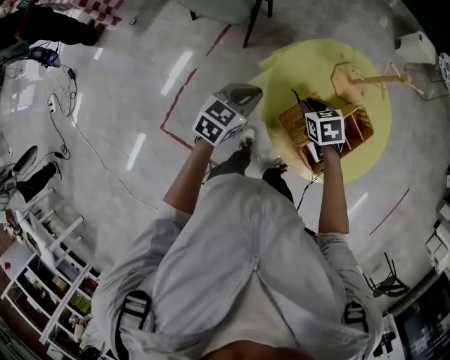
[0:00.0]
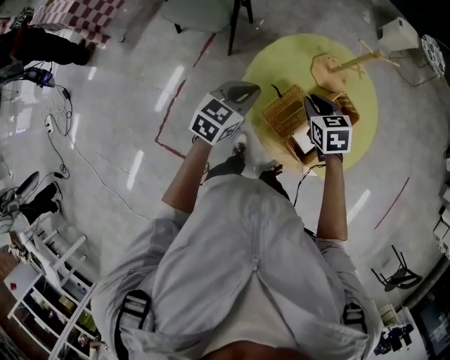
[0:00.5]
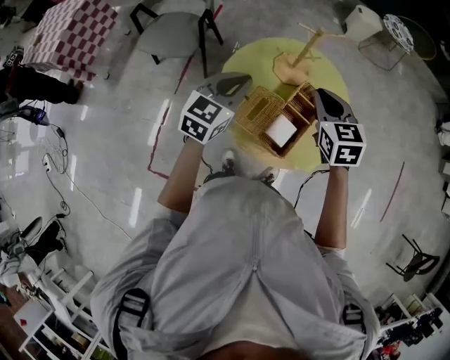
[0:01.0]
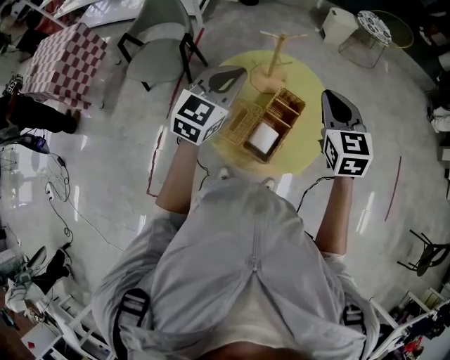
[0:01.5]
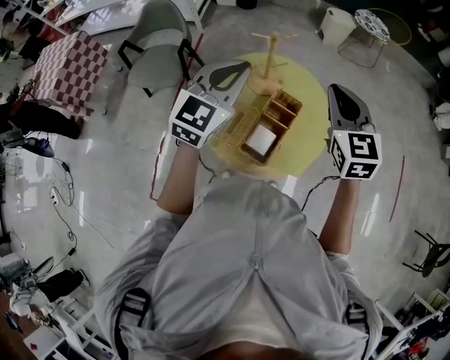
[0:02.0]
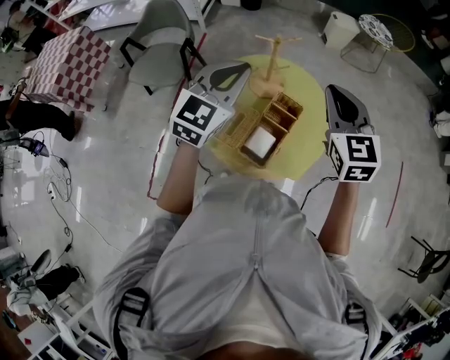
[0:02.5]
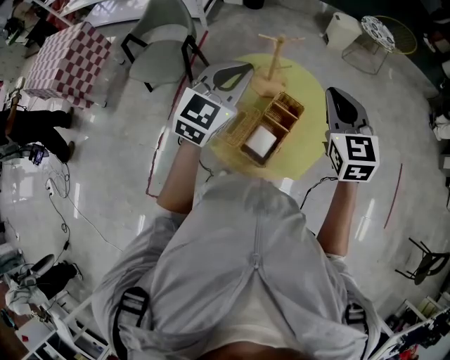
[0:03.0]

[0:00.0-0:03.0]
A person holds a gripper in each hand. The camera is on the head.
0:00.0 to 0:01.5: Both grippers travel together upward and to the right, about 35 cm. The right gripper angles its fingers upward, by about 40 degrees. Meanwhile the left gripper turns by some 30 degrees.

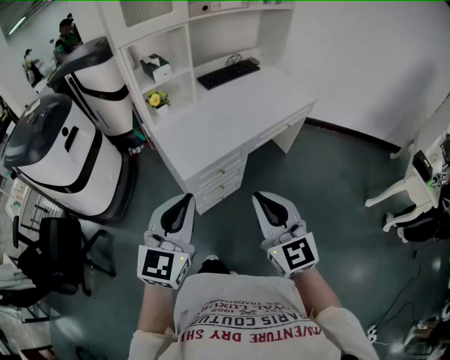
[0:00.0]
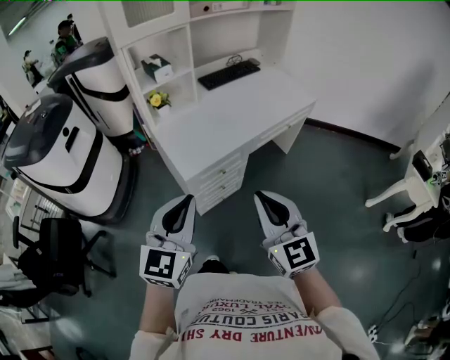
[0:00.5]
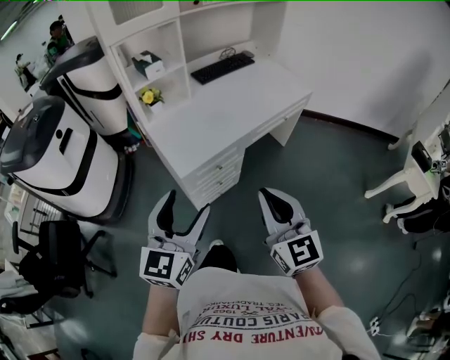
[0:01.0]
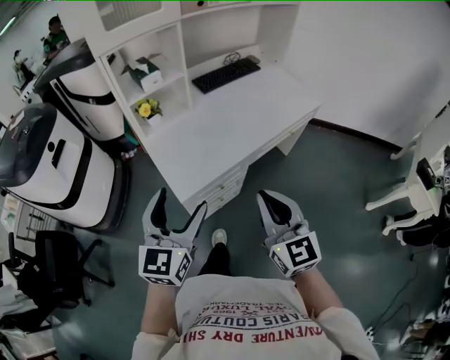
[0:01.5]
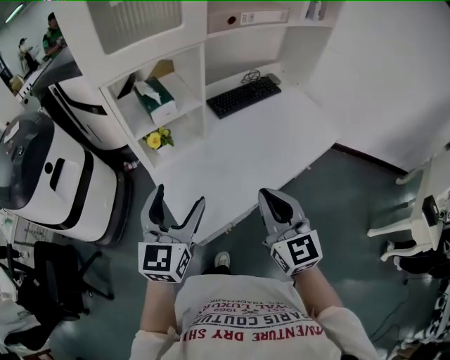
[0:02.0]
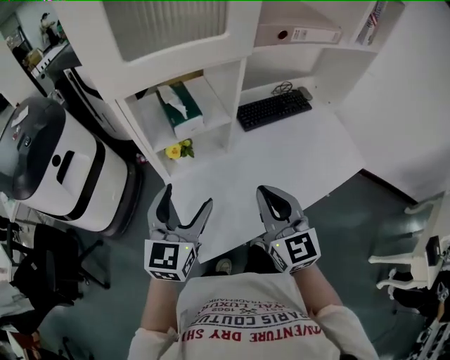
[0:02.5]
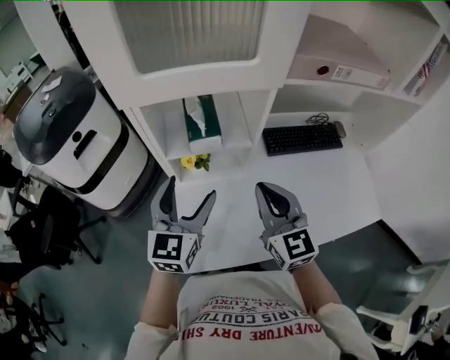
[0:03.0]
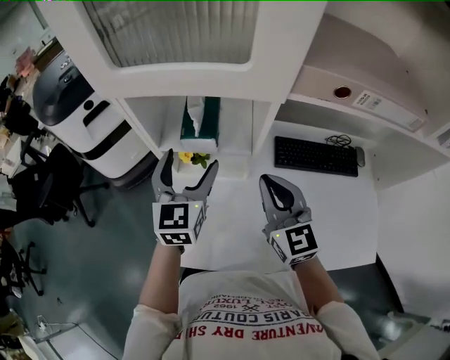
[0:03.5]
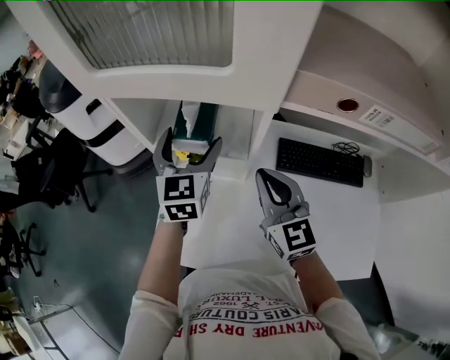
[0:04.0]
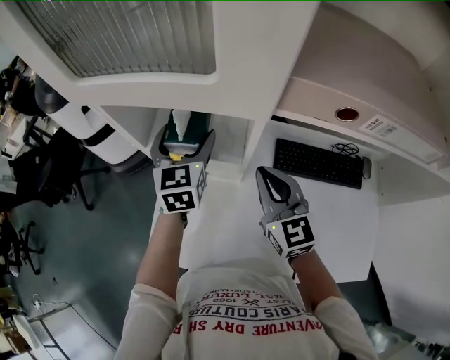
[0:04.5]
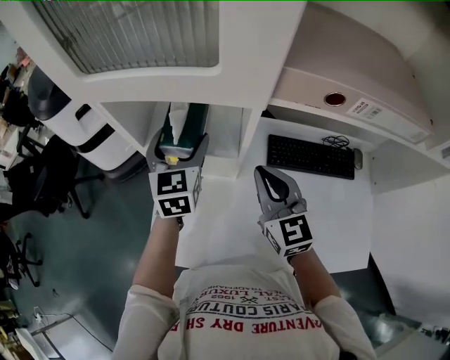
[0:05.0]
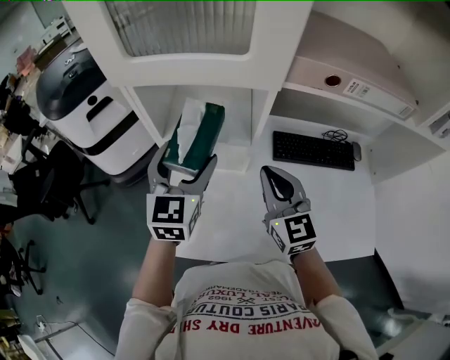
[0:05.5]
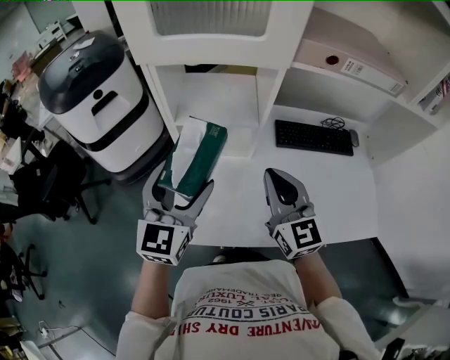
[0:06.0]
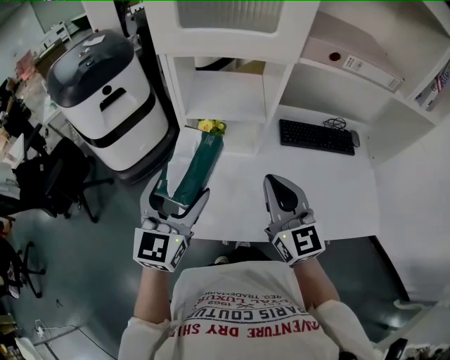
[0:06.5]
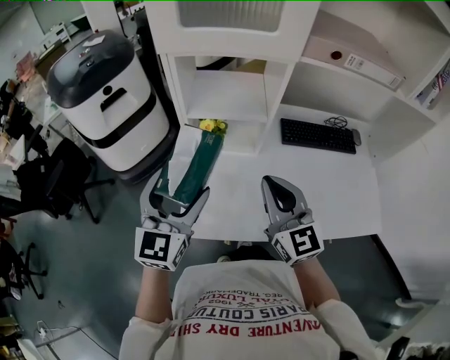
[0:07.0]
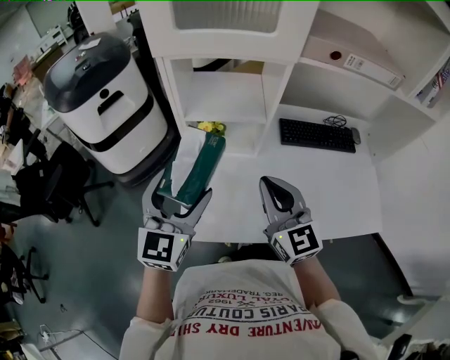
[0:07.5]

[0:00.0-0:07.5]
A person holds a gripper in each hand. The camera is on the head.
0:00.0 to 0:02.0: Both grippers travel together forward, roughly 35 cm. The left gripper opens.
0:02.0 to 0:04.0: The left gripper moves some 30 cm, and rotates roughly 50 degrees. The right gripper moves about 35 cm, and rotates roughly 40 degrees.
0:04.0 to 0:05.5: The left gripper travels backward by about 10 cm, while the right gripper moves backward, some 5 cm.
0:05.5 to 0:07.5: Both grippers move backward and to the left, approximately 15 cm.

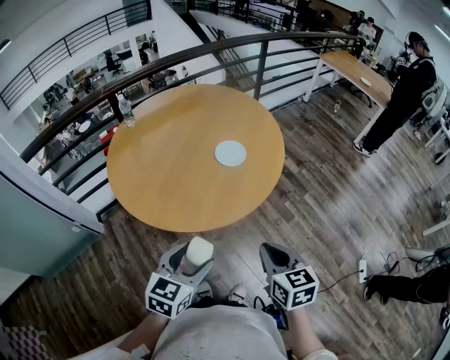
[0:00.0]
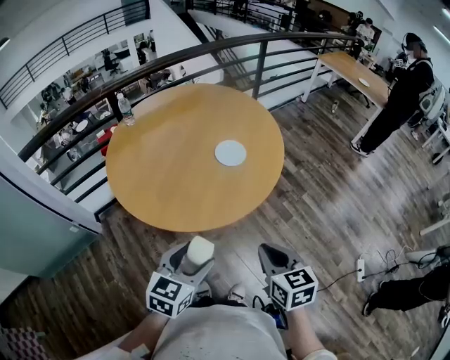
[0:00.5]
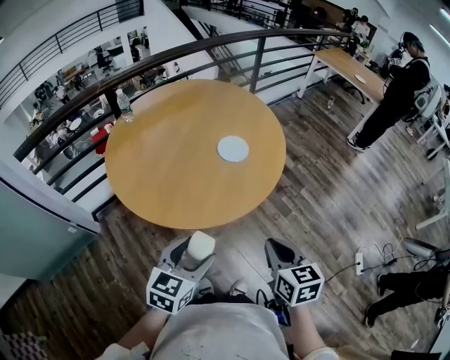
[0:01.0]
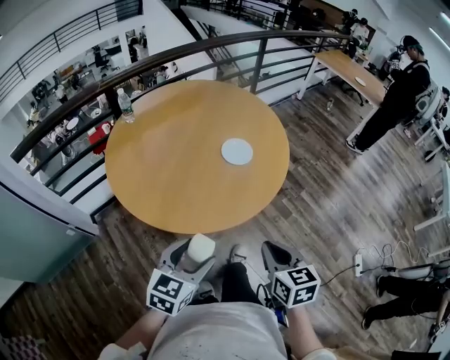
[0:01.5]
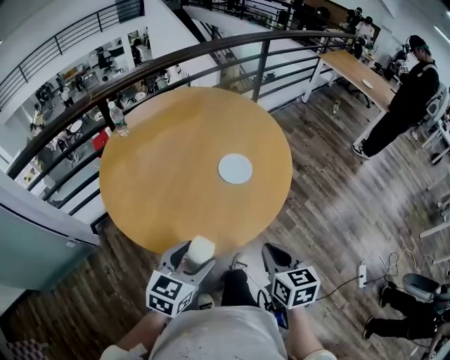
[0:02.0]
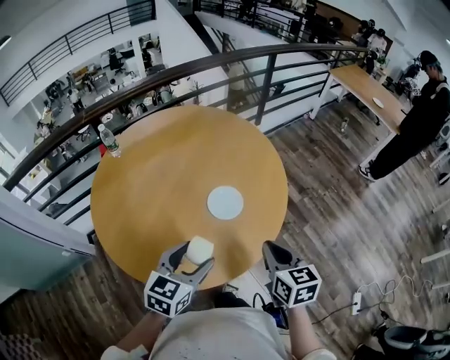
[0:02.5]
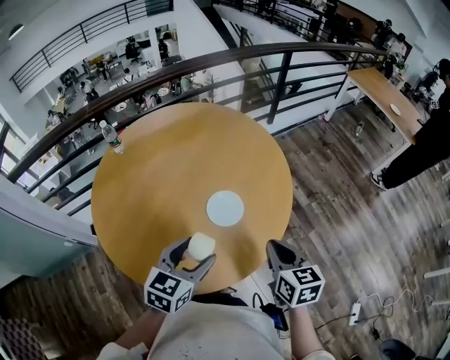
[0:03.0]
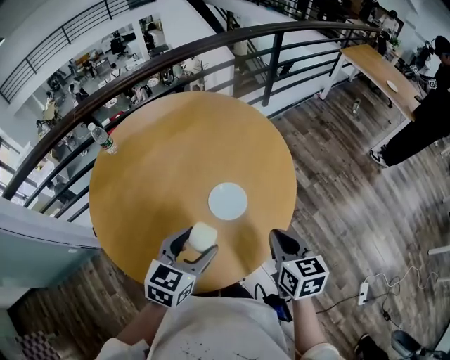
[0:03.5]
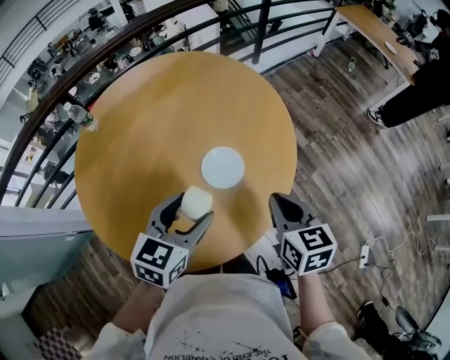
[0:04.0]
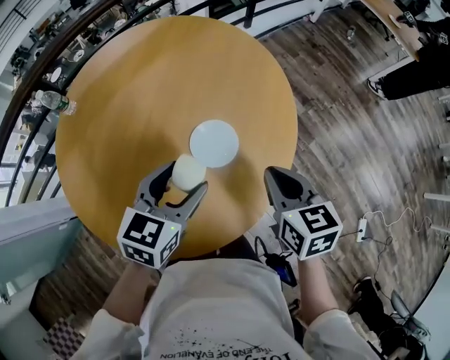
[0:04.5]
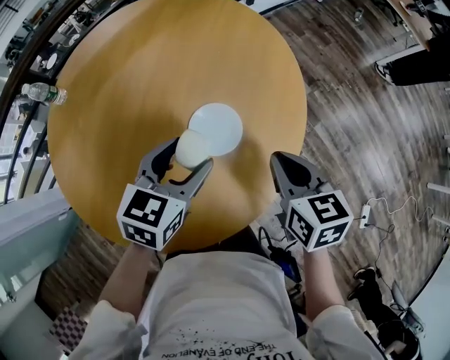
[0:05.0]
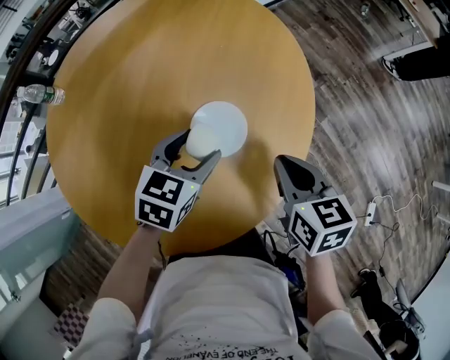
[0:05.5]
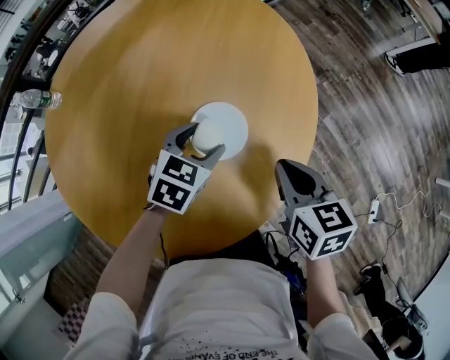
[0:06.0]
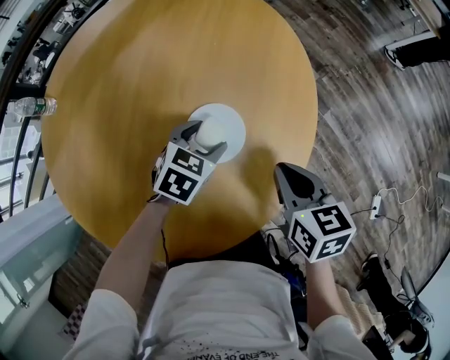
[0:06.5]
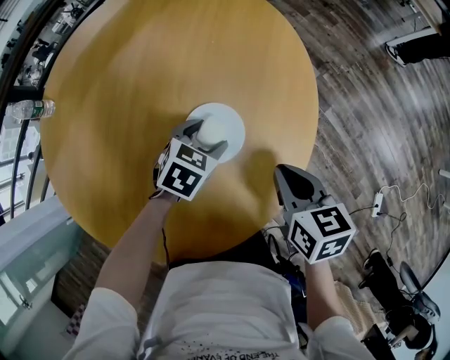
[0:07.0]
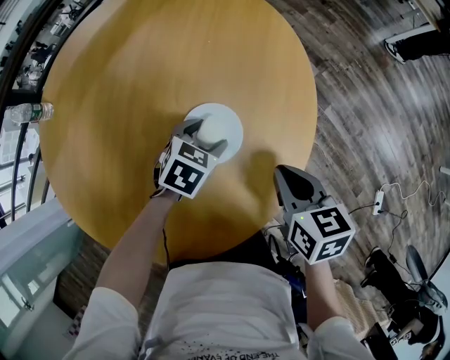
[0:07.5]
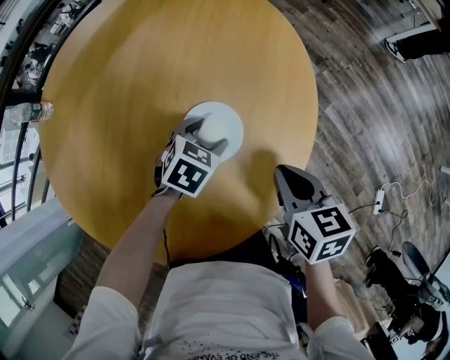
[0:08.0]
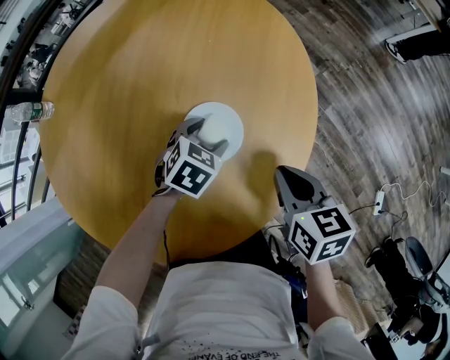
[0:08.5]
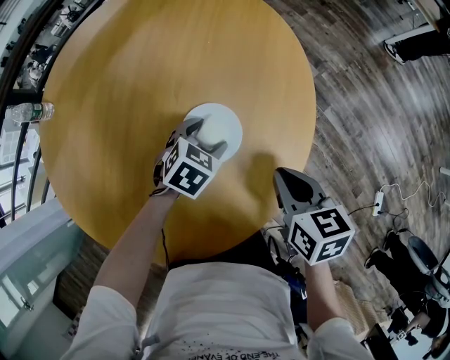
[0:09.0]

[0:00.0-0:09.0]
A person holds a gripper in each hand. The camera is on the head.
0:00.0 to 0:02.0: The grippers both shift forward by about 10 cm.
0:02.0 to 0:04.5: The two grippers go about 30 cm forward.
0:04.5 to 0:07.0: The right gripper heads downward, covering approximately 10 cm, while the left gripper goes roughly 25 cm downward and forward, and changes its angle by approximately 30 degrees.
0:07.0 to 0:09.0: The grippers stay close to where they were, moving slightly.

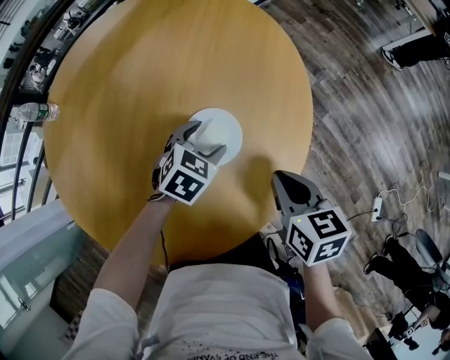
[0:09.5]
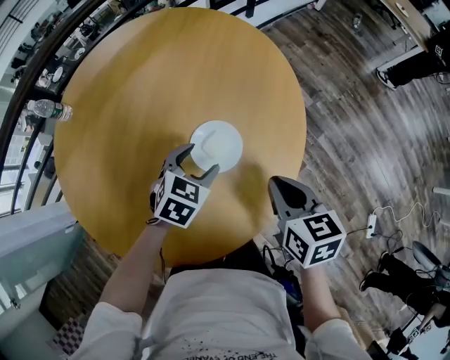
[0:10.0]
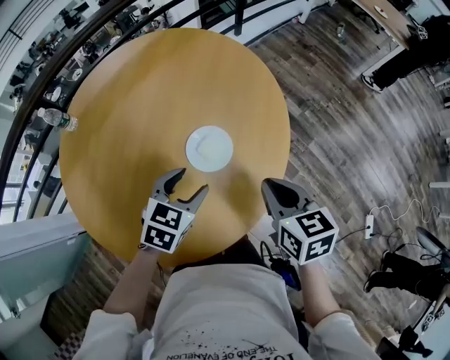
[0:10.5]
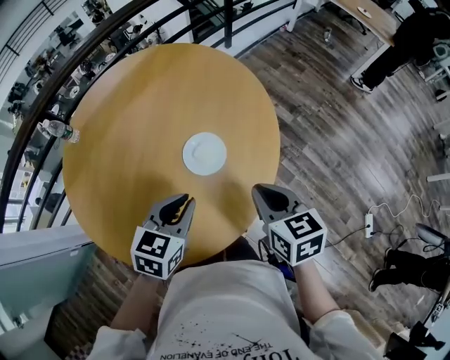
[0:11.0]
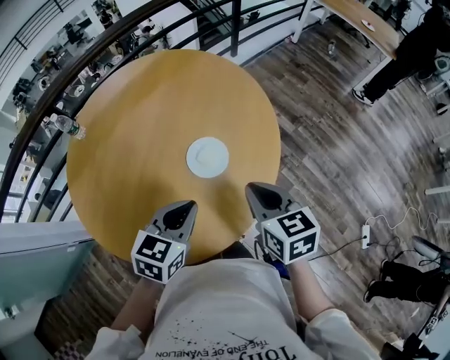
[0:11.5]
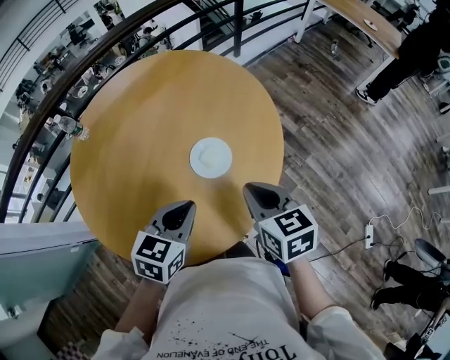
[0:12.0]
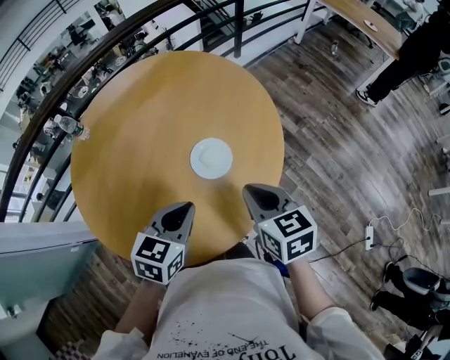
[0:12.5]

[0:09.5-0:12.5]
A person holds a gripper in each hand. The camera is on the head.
0:09.5 to 0:11.0: The left gripper moves upward and backward, approximately 25 cm, changes its angle by some 20 degrees, and closes. Meanwhile the right gripper travels upward and backward by roughly 15 cm.
0:11.0 to 0:12.5: The grippers make only small movements.

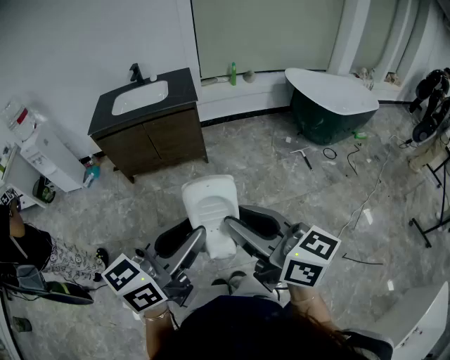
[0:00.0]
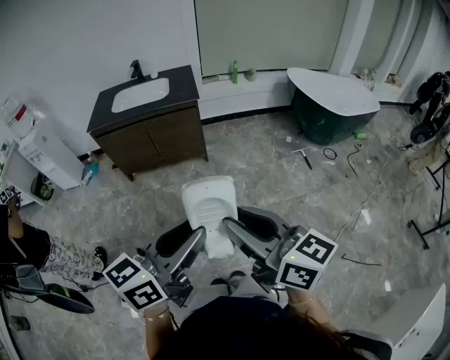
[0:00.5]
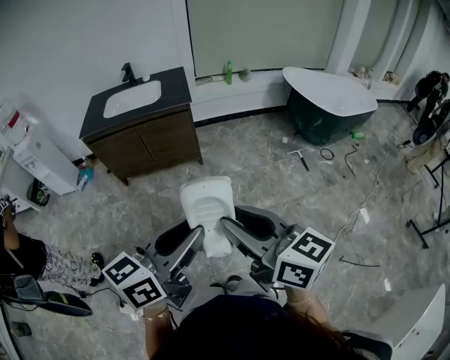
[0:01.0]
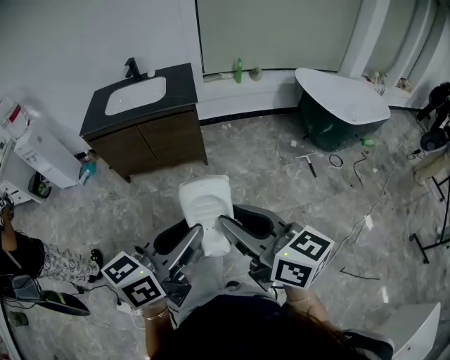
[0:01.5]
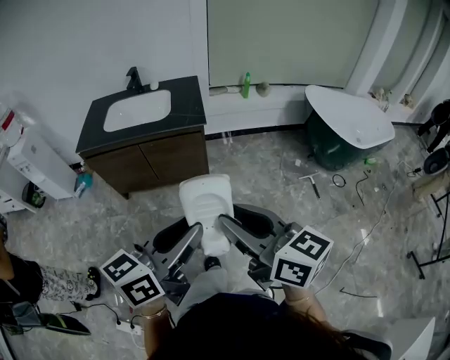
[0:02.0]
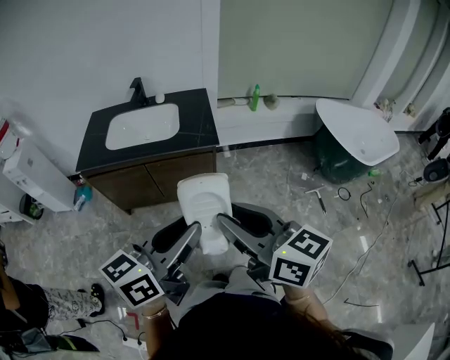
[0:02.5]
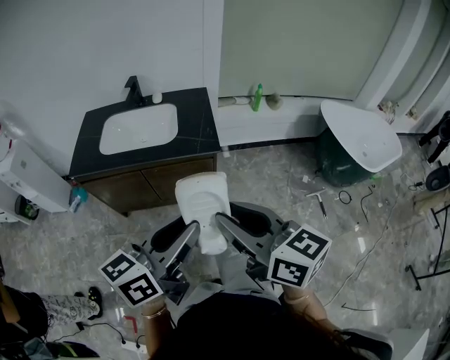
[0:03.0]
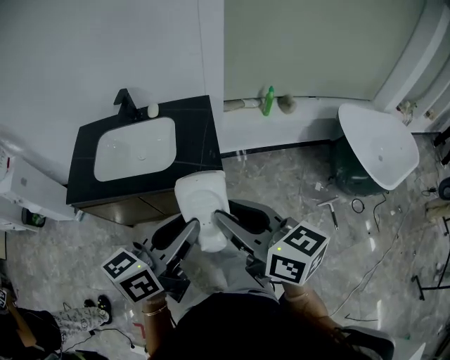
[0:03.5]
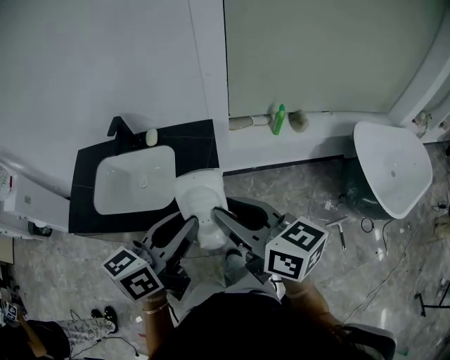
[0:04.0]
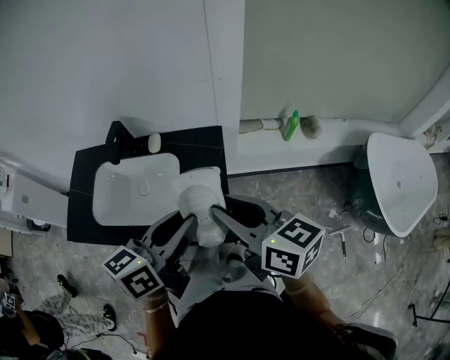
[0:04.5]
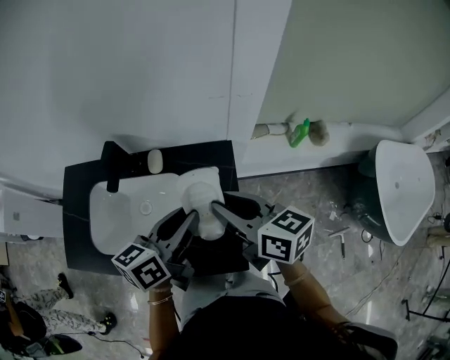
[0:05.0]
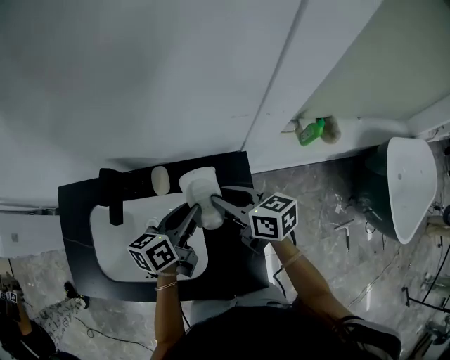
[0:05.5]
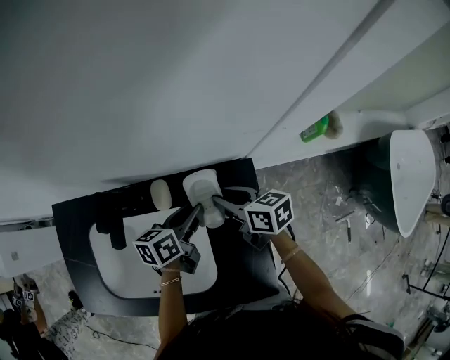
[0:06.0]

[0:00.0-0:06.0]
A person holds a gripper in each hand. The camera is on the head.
0:00.0 to 0:02.0: The two grippers go roughly 30 cm forward.
0:02.0 to 0:04.0: Both grippers are carried forward, some 60 cm.
0:04.0 to 0:06.0: The grippers both shift forward and downward by roughly 50 cm. The left gripper rotates about 30 degrees. Meanwhile the right gripper turns by some 30 degrees.
